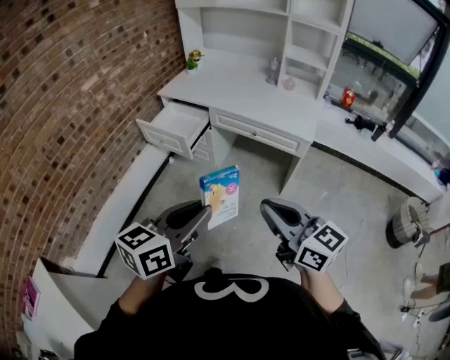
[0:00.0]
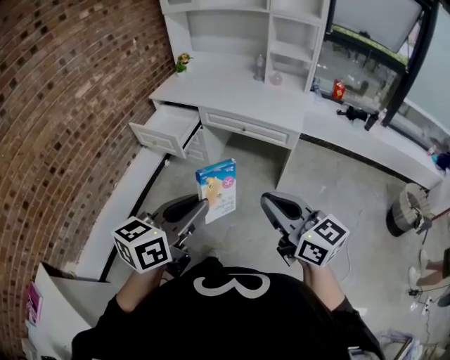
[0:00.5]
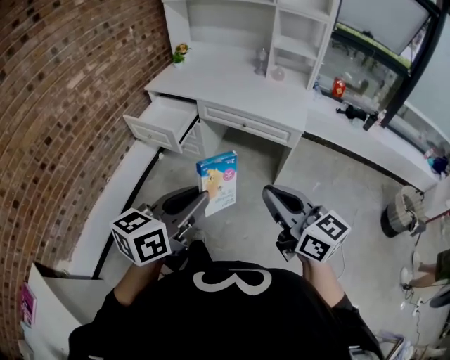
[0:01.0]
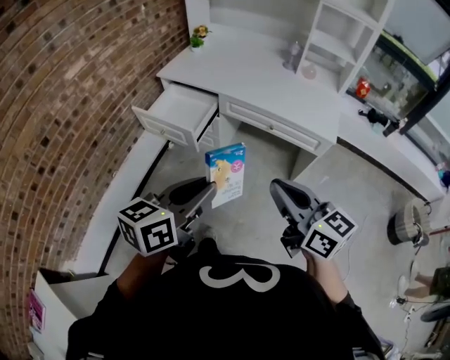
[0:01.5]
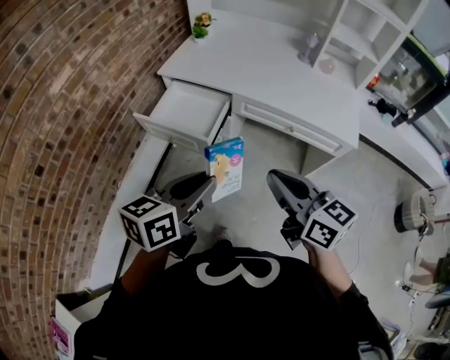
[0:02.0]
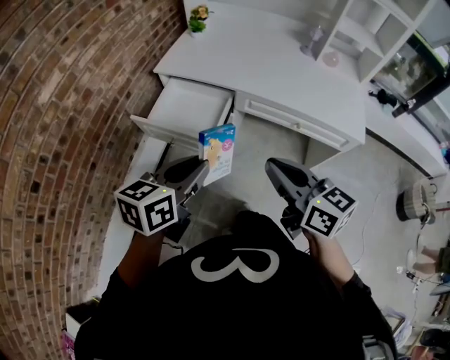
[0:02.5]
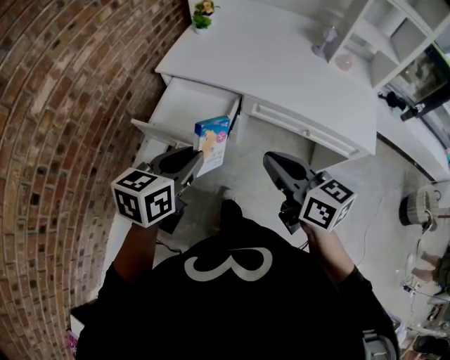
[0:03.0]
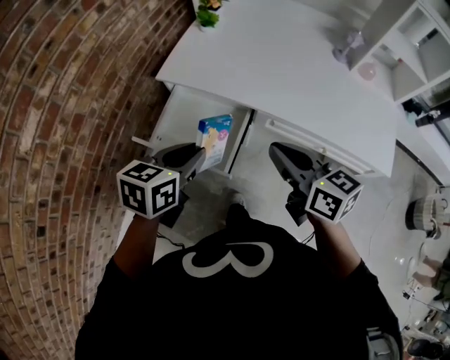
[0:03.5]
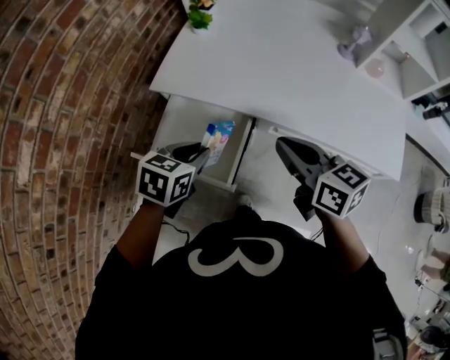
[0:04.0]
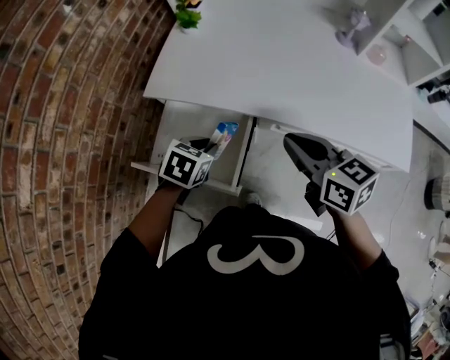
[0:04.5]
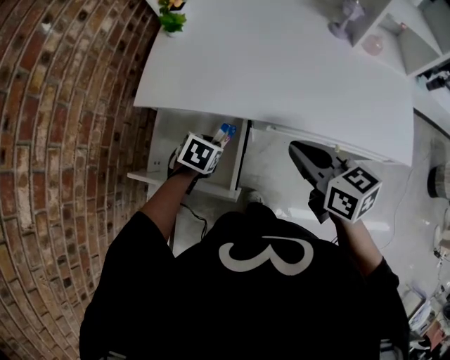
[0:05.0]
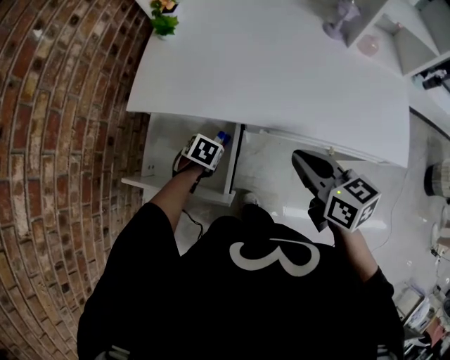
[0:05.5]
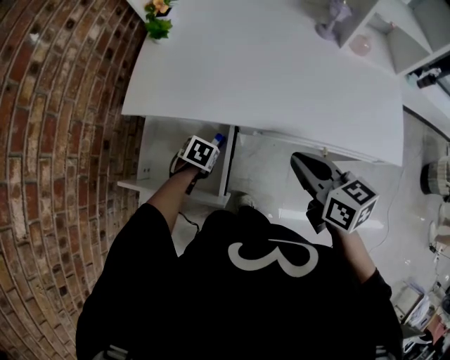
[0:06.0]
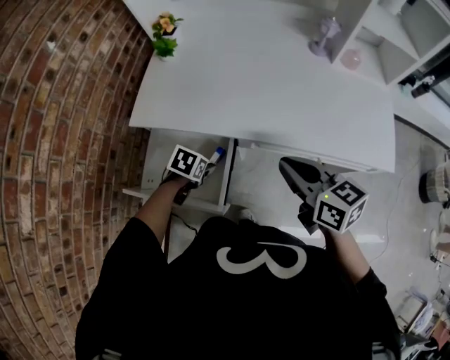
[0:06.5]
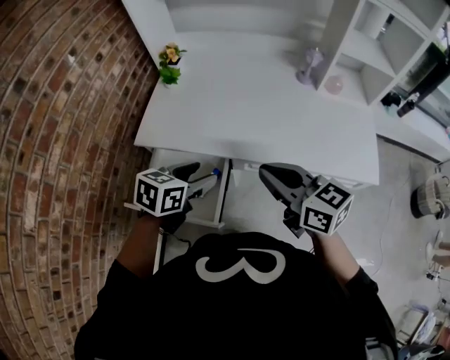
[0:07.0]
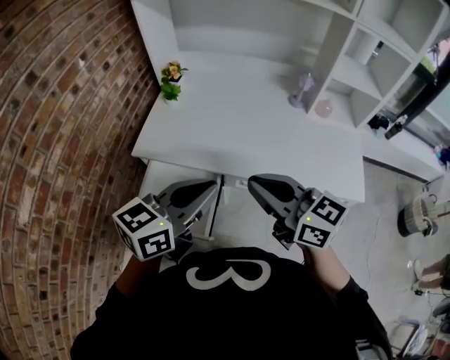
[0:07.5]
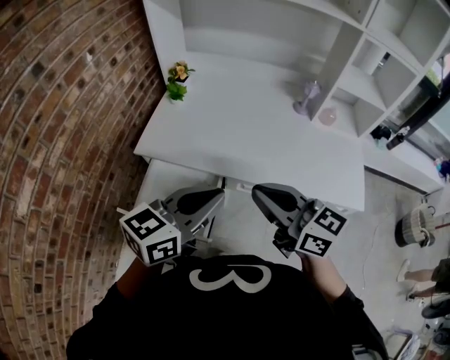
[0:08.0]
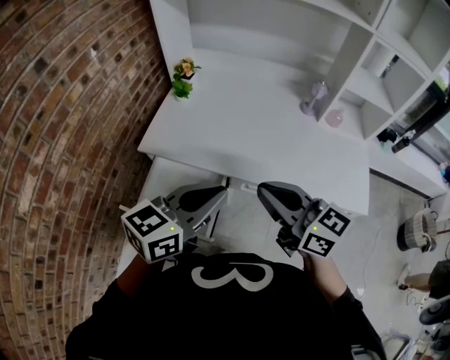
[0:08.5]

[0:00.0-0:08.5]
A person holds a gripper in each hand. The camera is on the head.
0:00.0 to 0:02.0: The two grippers go some 30 cm forward and to the left.
0:02.0 to 0:04.0: The right gripper shifts some 30 cm forward. The left gripper heads forward and downward, covering approximately 35 cm, and tilts its fingers some 30 degrees downward.
0:04.0 to 0:06.5: The left gripper heads downward, covering roughly 15 cm, turns by roughly 30 degrees, and opens. Meanwhile the right gripper ends up some 5 cm from where it was.
0:06.5 to 0:08.5: The right gripper goes approximately 15 cm upward, and rotates approximately 20 degrees; the left gripper heads upward, covering roughly 35 cm, tilts its fingers some 60 degrees upward, and closes up.

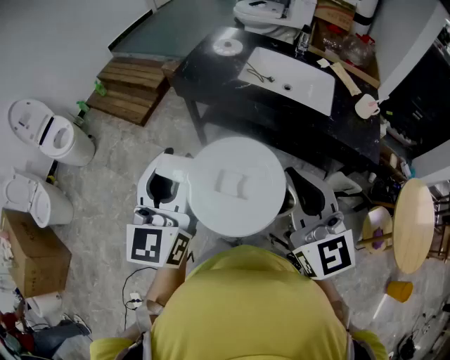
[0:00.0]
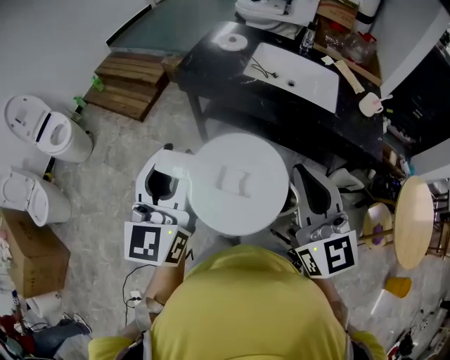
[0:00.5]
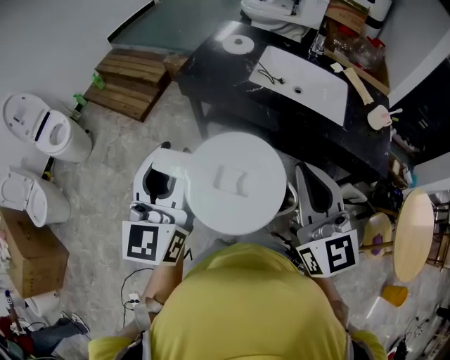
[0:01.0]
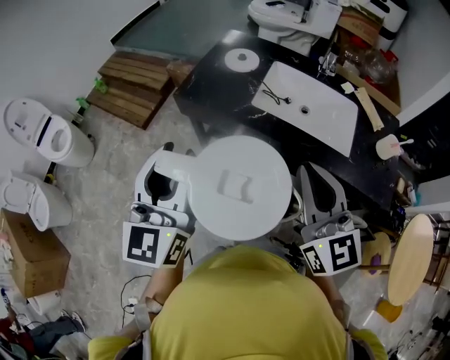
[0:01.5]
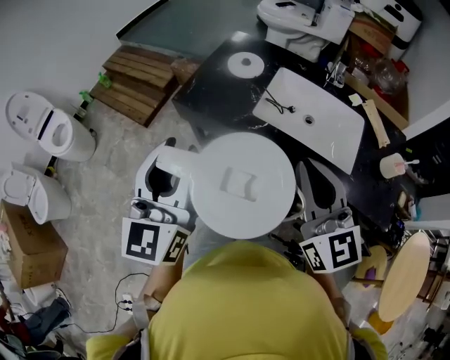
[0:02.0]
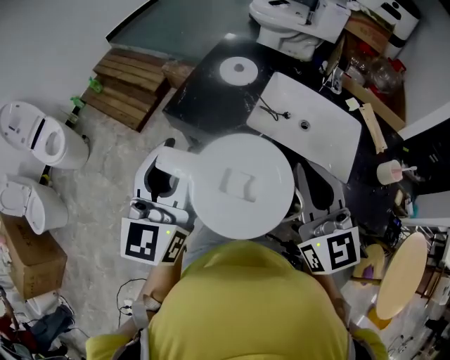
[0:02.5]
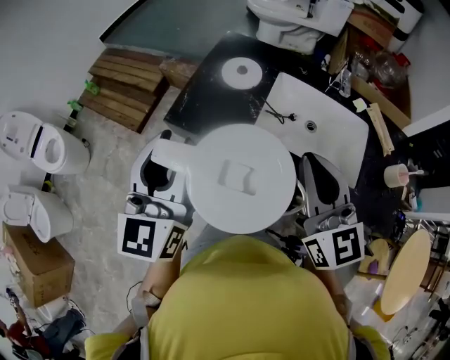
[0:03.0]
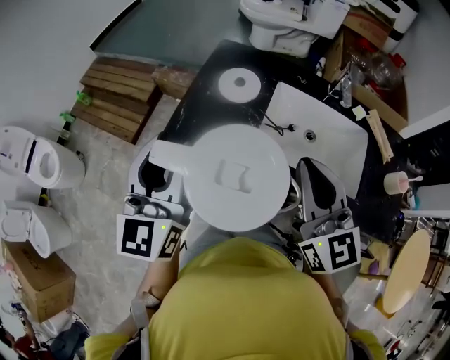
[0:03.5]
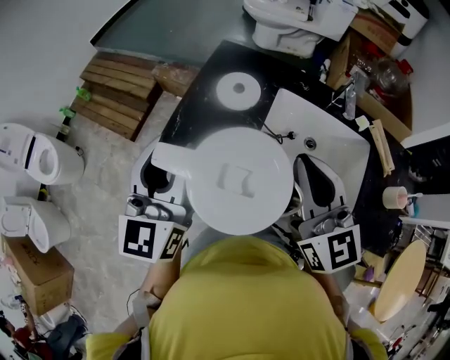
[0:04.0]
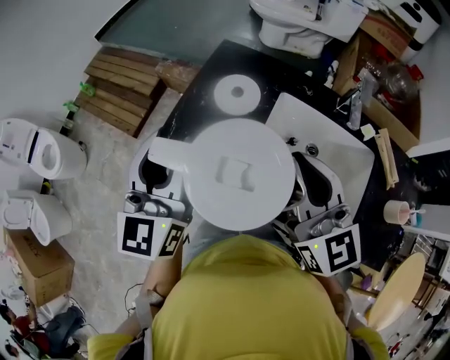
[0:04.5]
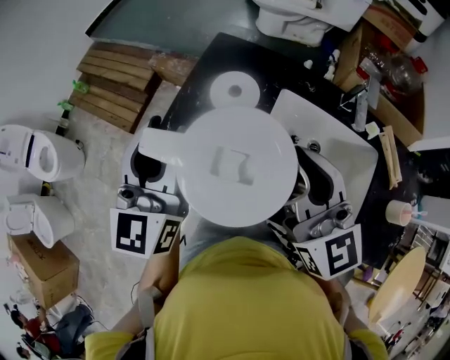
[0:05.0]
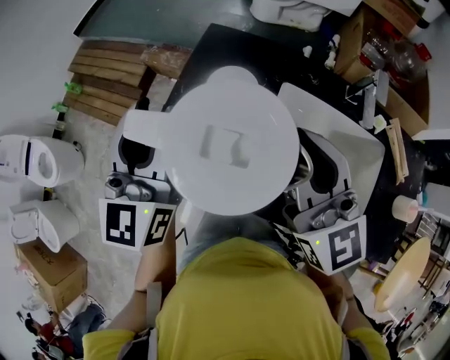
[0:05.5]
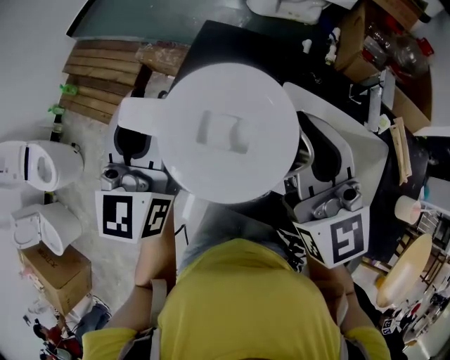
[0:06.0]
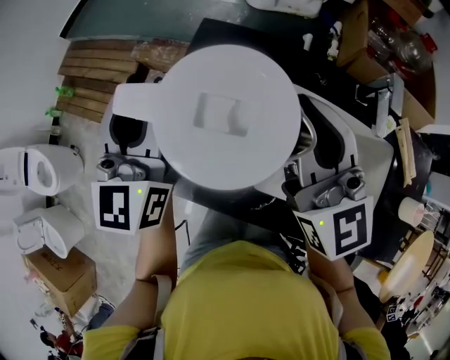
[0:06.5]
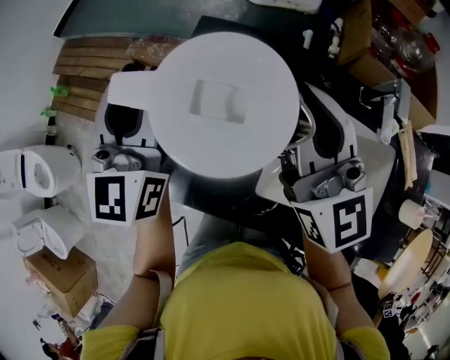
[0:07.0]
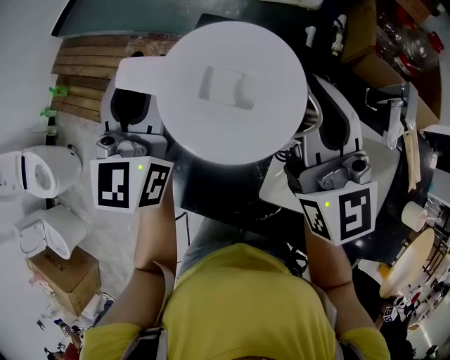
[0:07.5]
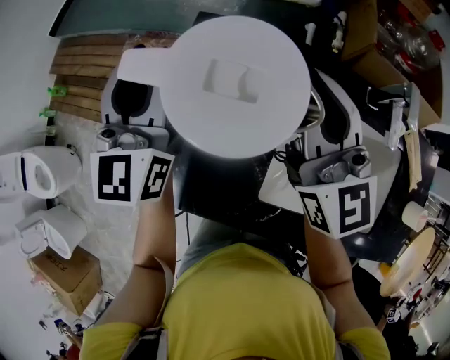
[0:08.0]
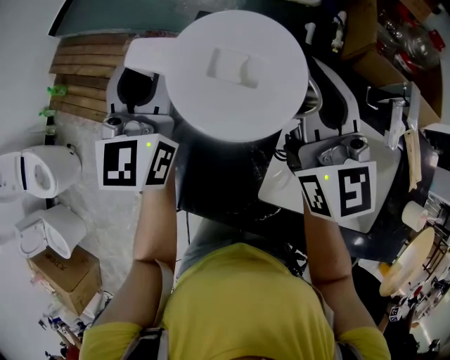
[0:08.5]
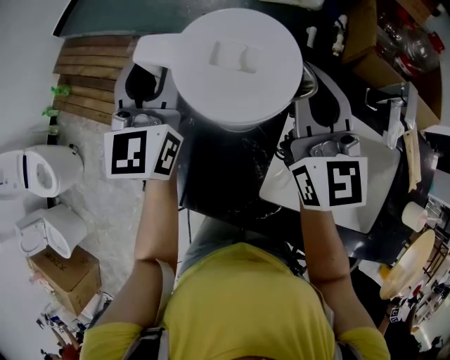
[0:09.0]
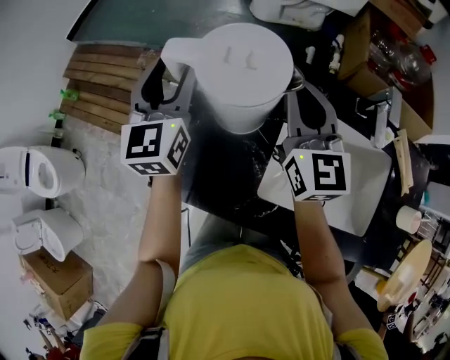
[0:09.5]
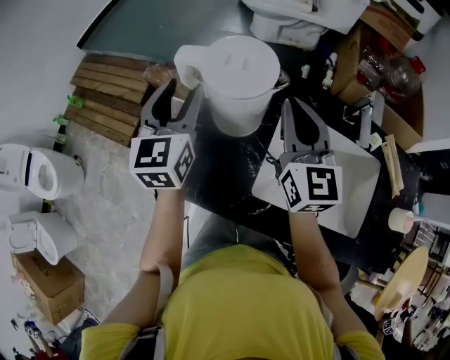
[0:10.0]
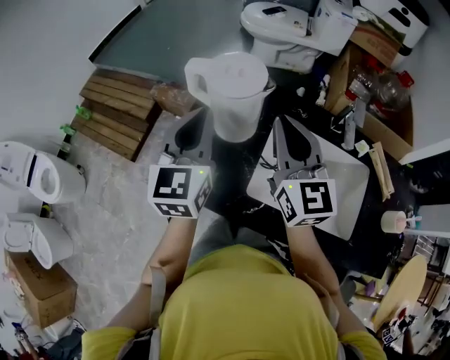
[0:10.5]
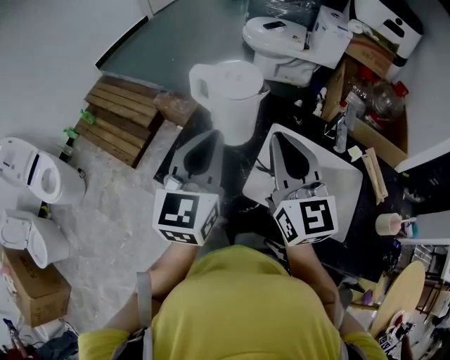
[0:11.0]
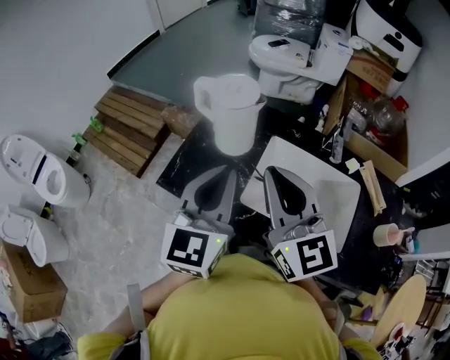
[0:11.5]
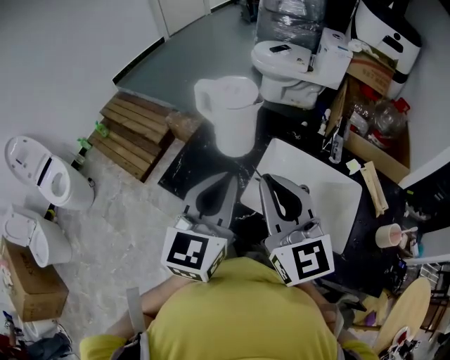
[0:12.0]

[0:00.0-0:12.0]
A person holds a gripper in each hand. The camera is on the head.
0:00.0 to 0:02.0: The two grippers go roughly 25 cm forward.
0:02.0 to 0:04.0: The grippers both shift forward by approximately 20 cm.
0:04.0 to 0:06.0: Both grippers move forward, roughly 15 cm.
0:06.0 to 0:08.0: The left gripper shifts approximately 15 cm forward and downward; the right gripper is displaced forward by roughly 10 cm.
0:08.0 to 0:10.0: The left gripper travels backward by approximately 5 cm.
0:10.0 to 0:12.0: The left gripper goes roughly 30 cm backward and to the right, and closes up, while the right gripper shifts approximately 25 cm backward and upward.

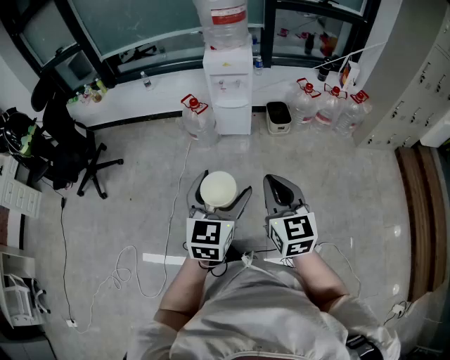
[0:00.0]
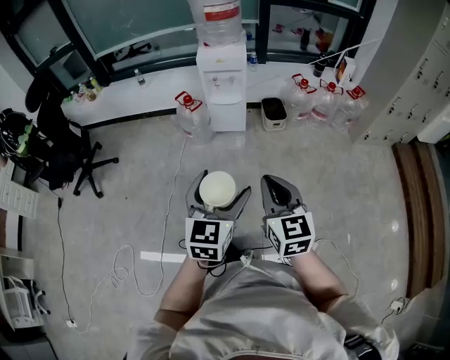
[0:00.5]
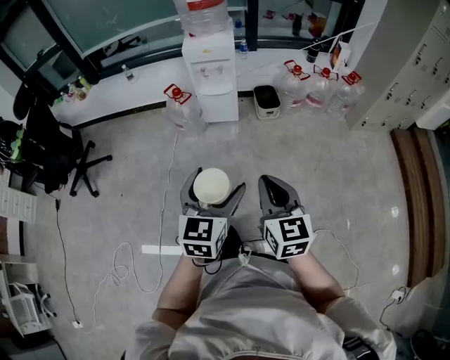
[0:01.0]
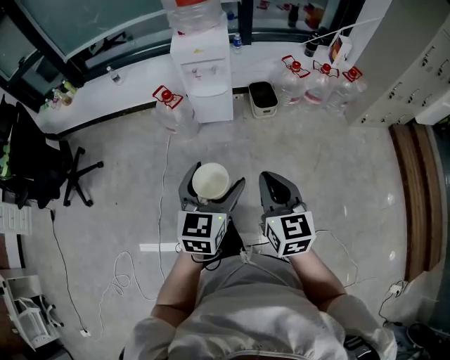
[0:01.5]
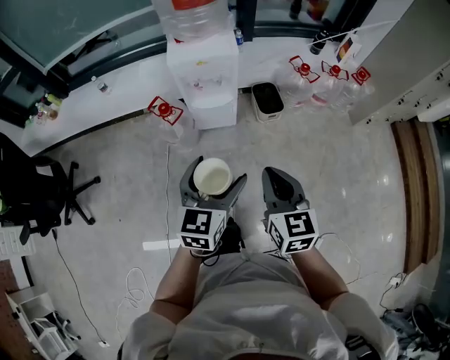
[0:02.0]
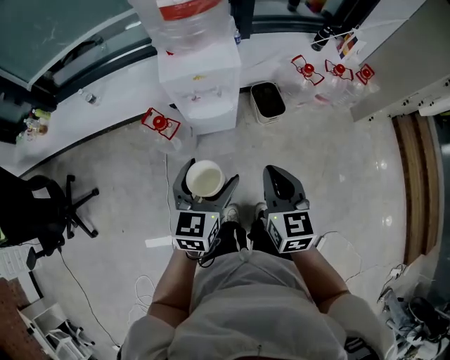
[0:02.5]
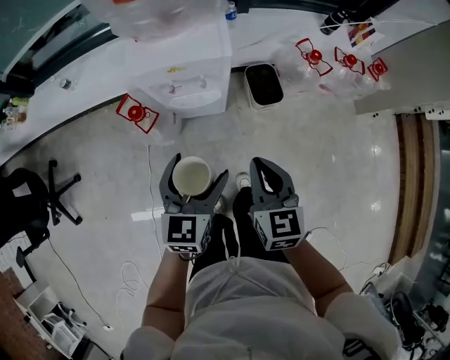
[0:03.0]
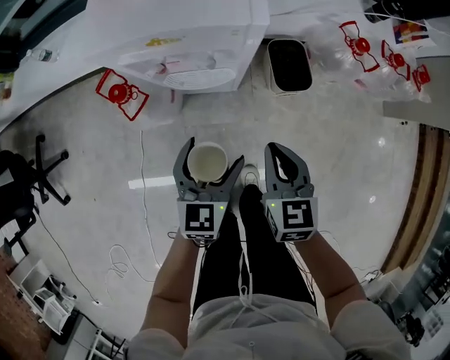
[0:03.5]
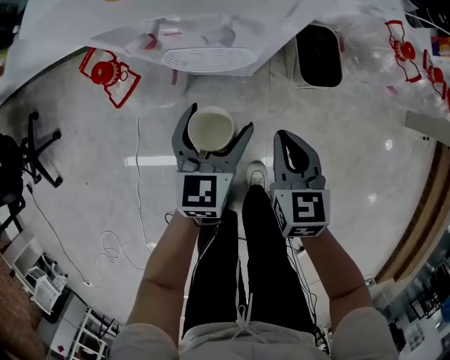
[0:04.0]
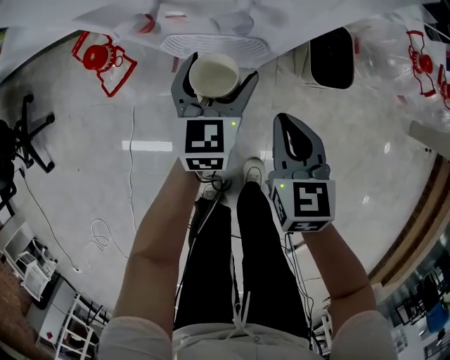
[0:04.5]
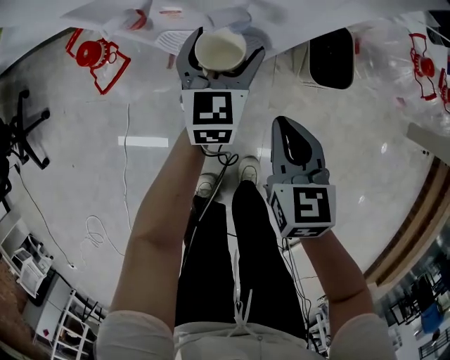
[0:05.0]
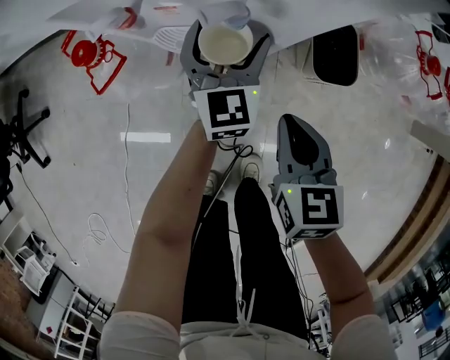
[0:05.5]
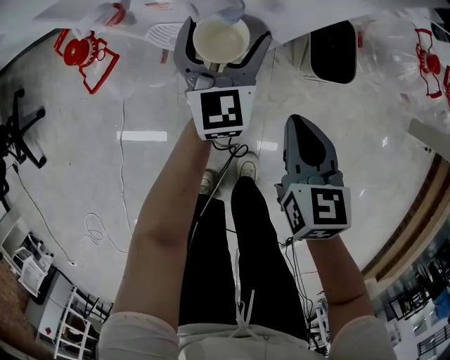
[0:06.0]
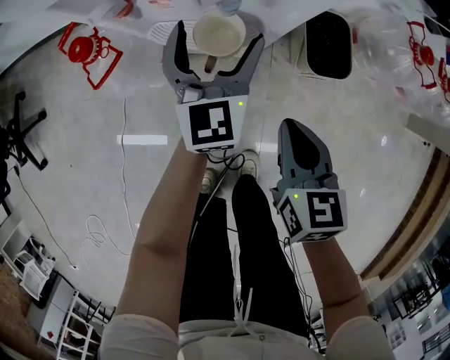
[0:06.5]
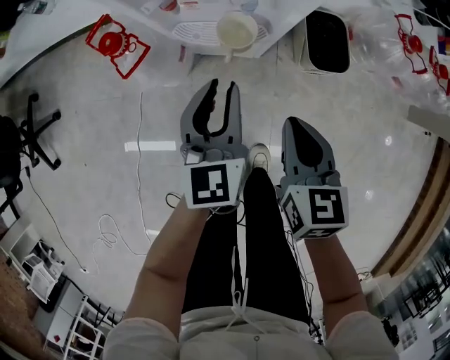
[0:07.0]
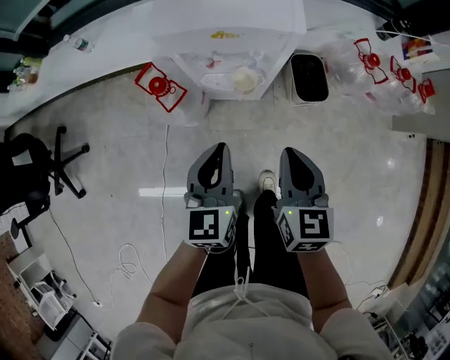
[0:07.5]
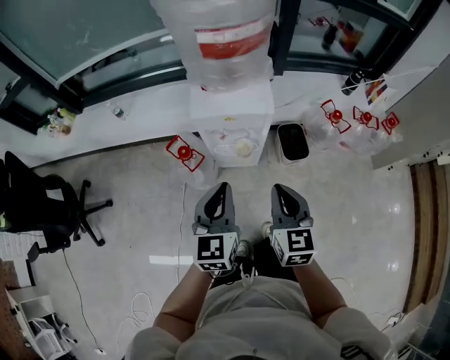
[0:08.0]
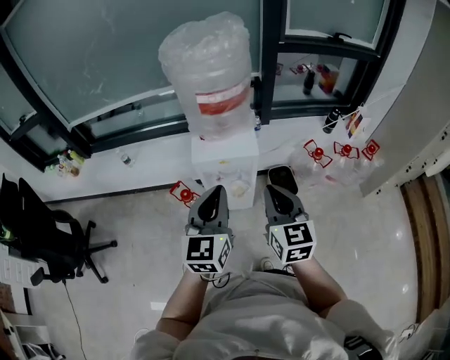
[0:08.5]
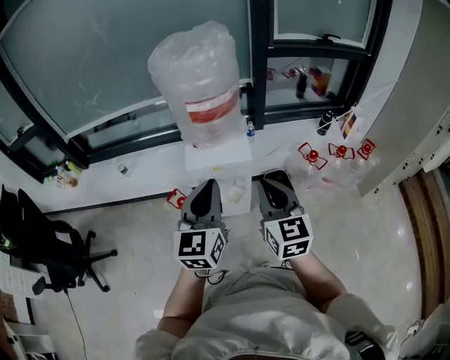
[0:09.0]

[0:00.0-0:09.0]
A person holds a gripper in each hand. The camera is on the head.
0:00.0 to 0:02.0: Both grippers travel together forward, about 30 cm.
0:02.0 to 0:04.5: The two grippers go roughly 60 cm downward and forward. The right gripper changes its angle by about 20 degrees.
0:04.5 to 0:07.0: The right gripper is displaced upward and backward by some 10 cm. The left gripper moves upward and backward, some 15 cm, and closes up.
0:07.0 to 0:09.0: The two grippers go roughly 50 cm upward. The left gripper changes its angle by some 20 degrees. The right gripper tips its fingers upward by some 30 degrees.
